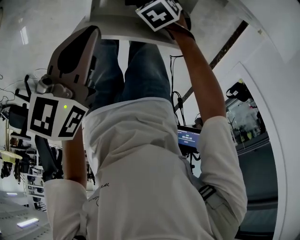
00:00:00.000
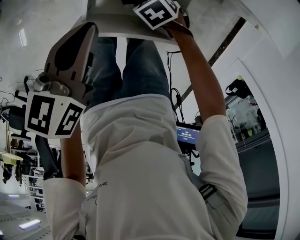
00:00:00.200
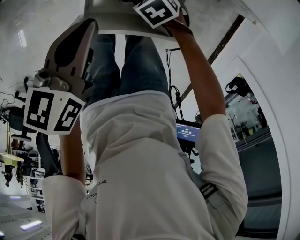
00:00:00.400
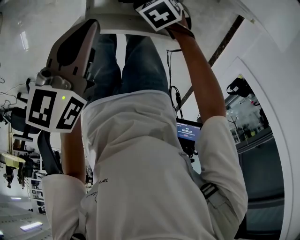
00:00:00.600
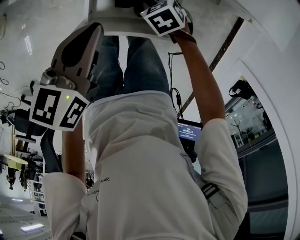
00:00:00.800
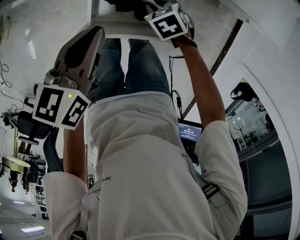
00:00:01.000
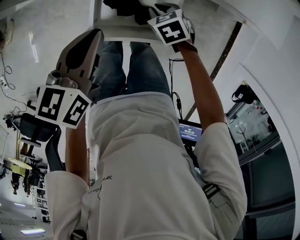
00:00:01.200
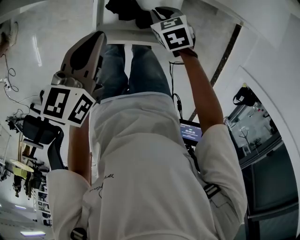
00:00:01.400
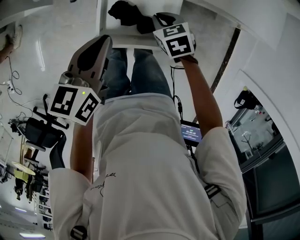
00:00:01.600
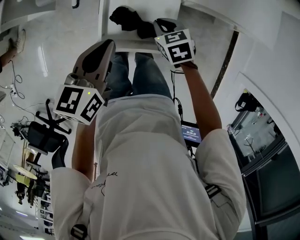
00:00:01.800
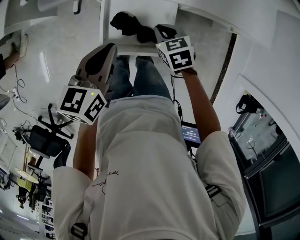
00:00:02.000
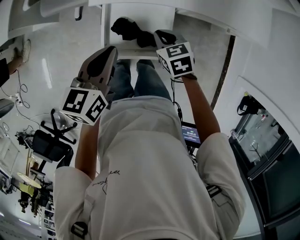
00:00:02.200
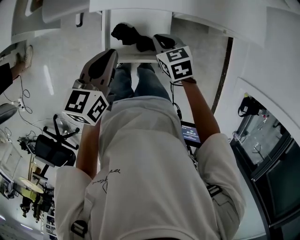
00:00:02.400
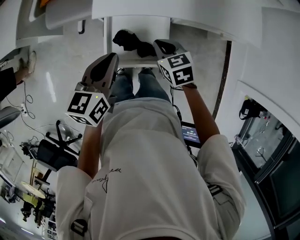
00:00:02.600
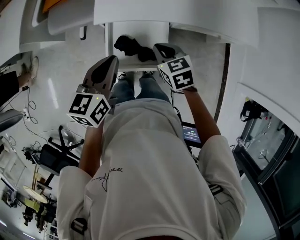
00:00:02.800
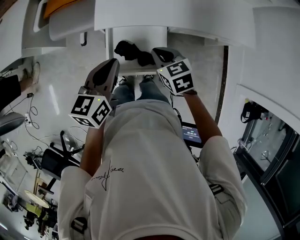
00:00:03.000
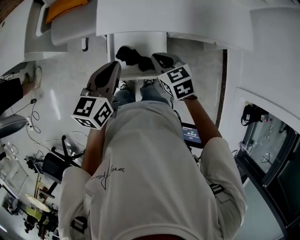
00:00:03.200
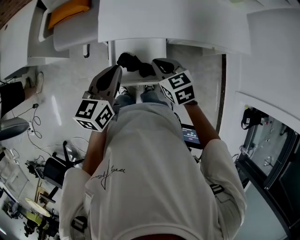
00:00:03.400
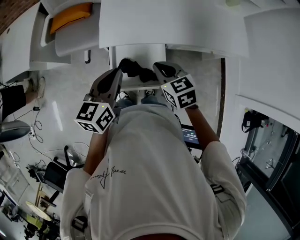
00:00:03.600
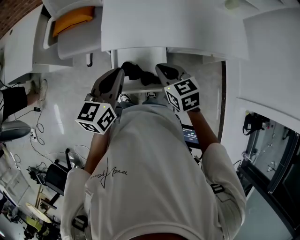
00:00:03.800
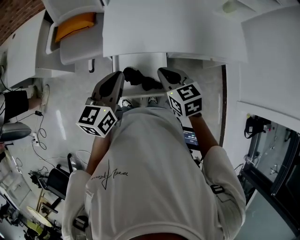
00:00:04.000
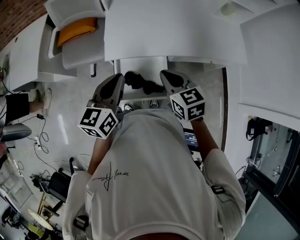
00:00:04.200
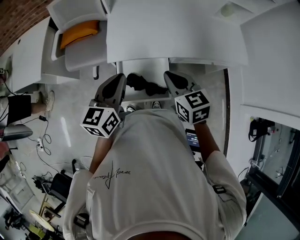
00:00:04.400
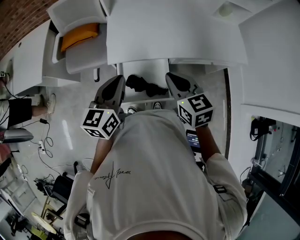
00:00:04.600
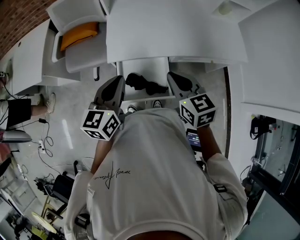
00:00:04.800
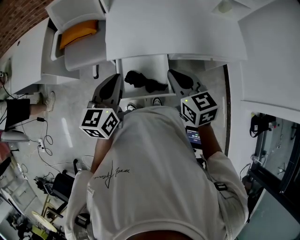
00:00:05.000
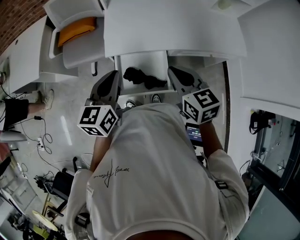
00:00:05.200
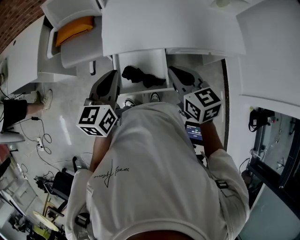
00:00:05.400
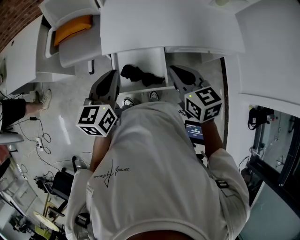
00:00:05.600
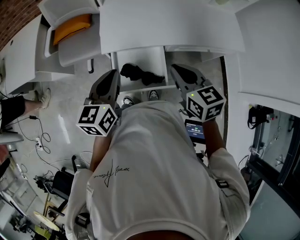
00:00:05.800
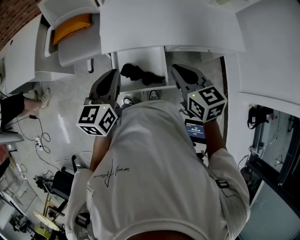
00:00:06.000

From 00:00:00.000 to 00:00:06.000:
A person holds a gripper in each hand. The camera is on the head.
From 00:00:00.000 to 00:00:01.600: The right gripper shifts about 15 cm upward, rotates some 30 degrees, and closes. Meanwhile the left gripper moves upward, about 5 cm.
From 00:00:01.600 to 00:00:03.000: The left gripper travels upward by some 10 cm; the right gripper shifts some 15 cm upward.
From 00:00:03.000 to 00:00:04.400: The left gripper heads upward, covering some 5 cm; the right gripper travels upward by about 10 cm.
From 00:00:04.400 to 00:00:06.000: The grippers stay close to where they were, moving slightly.

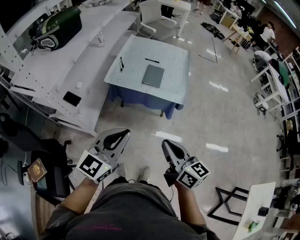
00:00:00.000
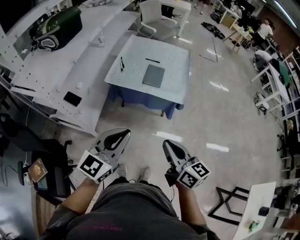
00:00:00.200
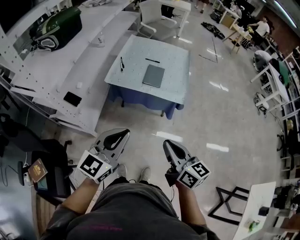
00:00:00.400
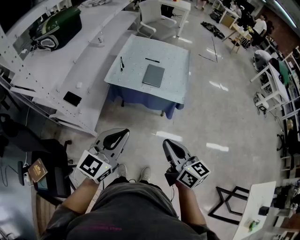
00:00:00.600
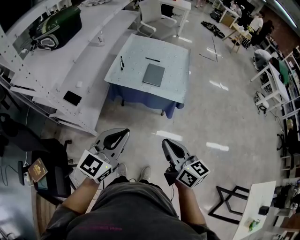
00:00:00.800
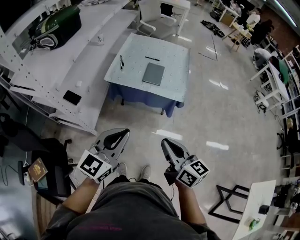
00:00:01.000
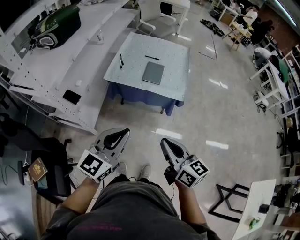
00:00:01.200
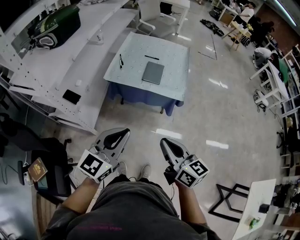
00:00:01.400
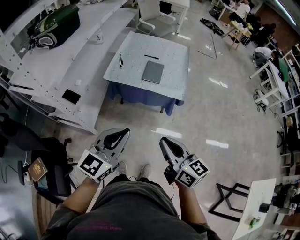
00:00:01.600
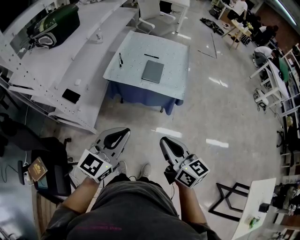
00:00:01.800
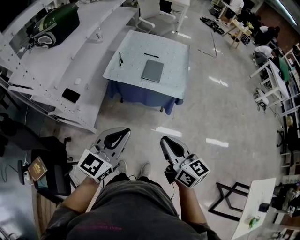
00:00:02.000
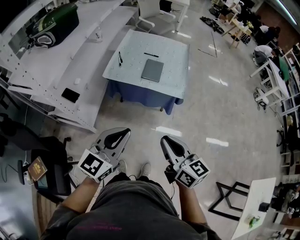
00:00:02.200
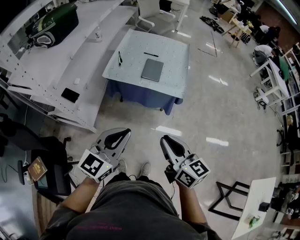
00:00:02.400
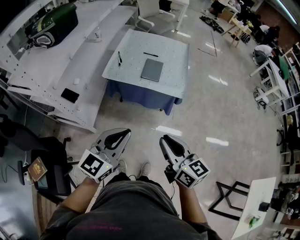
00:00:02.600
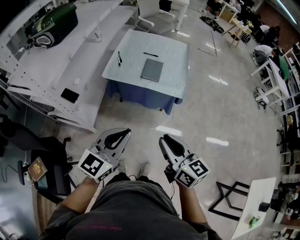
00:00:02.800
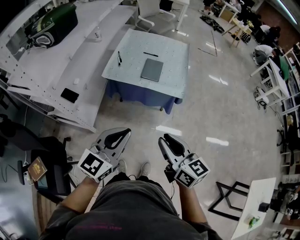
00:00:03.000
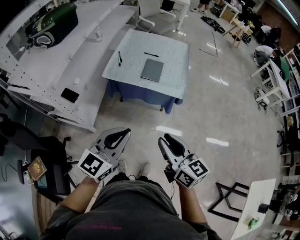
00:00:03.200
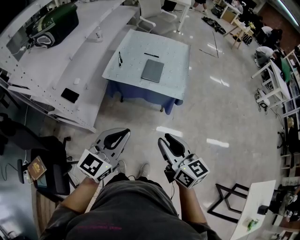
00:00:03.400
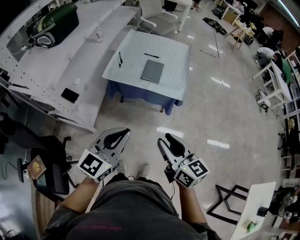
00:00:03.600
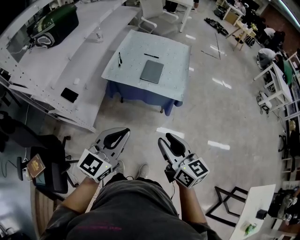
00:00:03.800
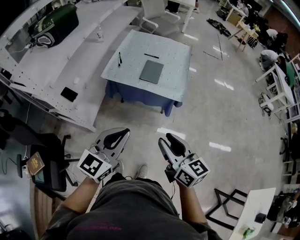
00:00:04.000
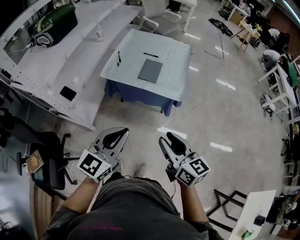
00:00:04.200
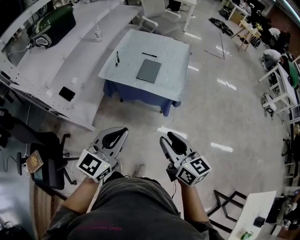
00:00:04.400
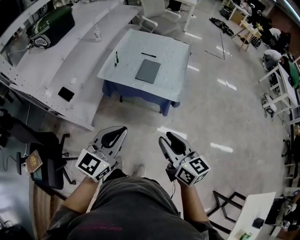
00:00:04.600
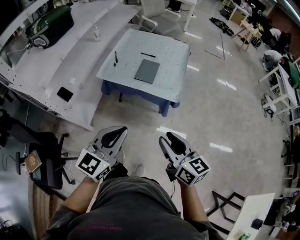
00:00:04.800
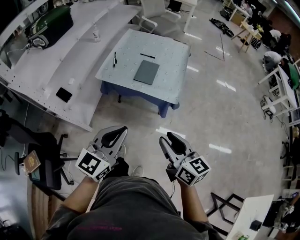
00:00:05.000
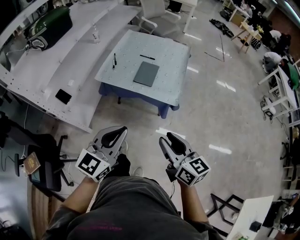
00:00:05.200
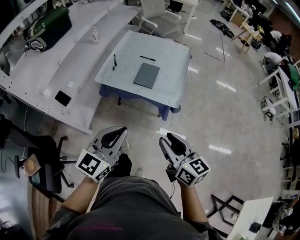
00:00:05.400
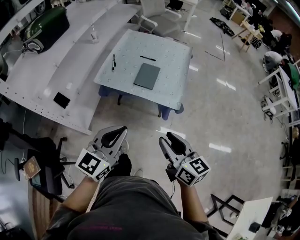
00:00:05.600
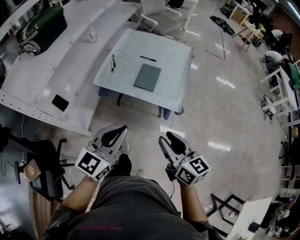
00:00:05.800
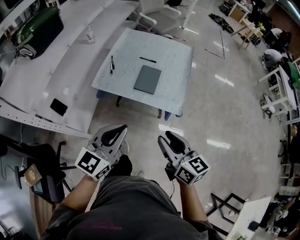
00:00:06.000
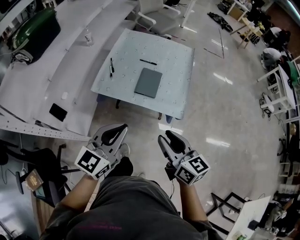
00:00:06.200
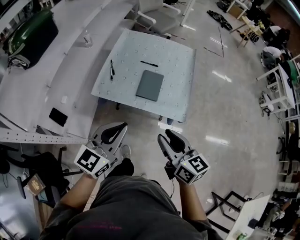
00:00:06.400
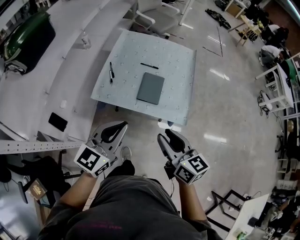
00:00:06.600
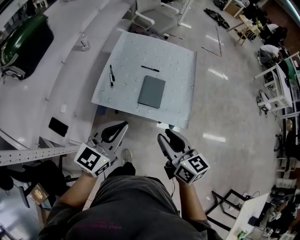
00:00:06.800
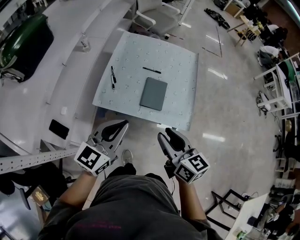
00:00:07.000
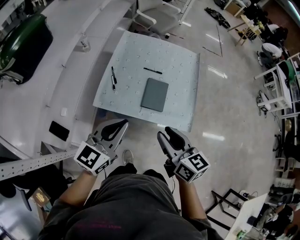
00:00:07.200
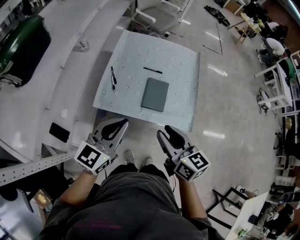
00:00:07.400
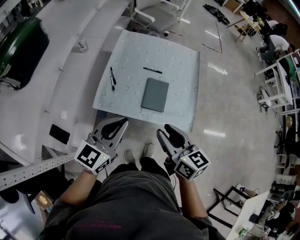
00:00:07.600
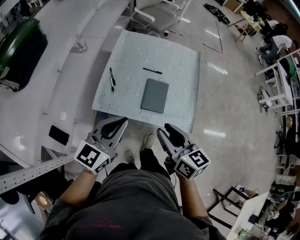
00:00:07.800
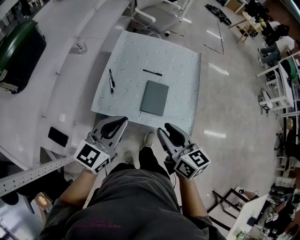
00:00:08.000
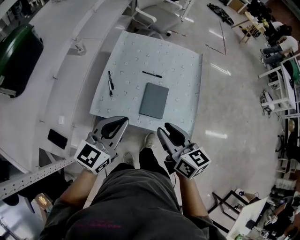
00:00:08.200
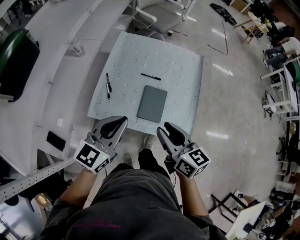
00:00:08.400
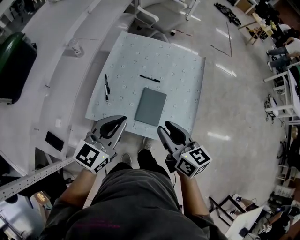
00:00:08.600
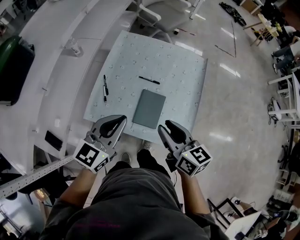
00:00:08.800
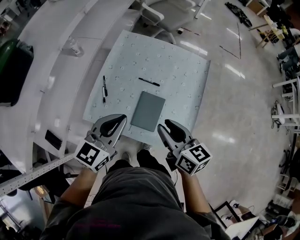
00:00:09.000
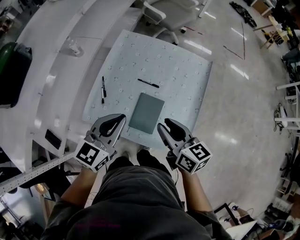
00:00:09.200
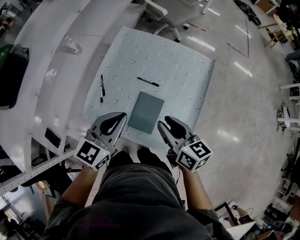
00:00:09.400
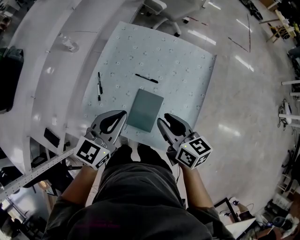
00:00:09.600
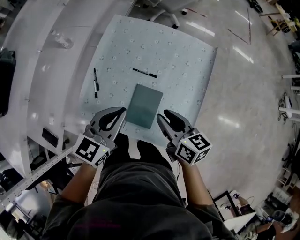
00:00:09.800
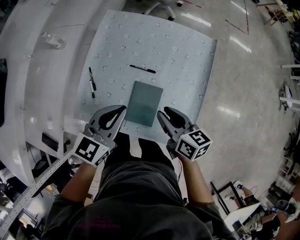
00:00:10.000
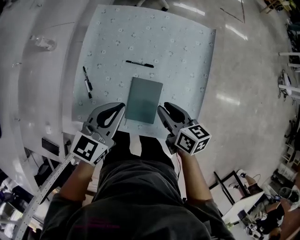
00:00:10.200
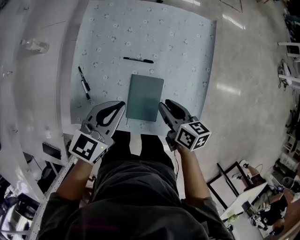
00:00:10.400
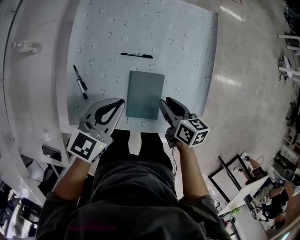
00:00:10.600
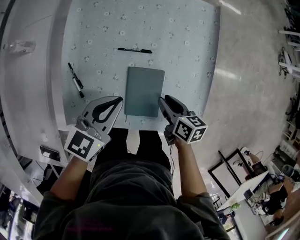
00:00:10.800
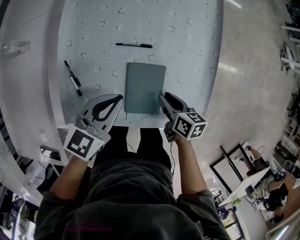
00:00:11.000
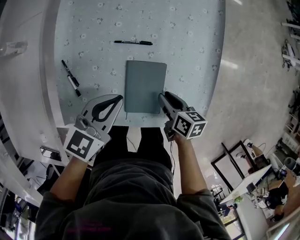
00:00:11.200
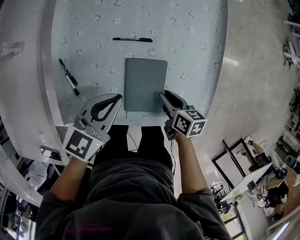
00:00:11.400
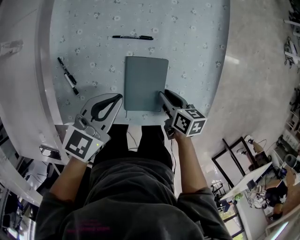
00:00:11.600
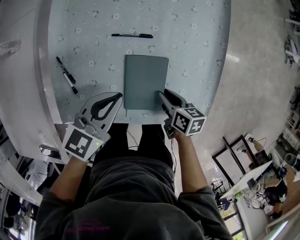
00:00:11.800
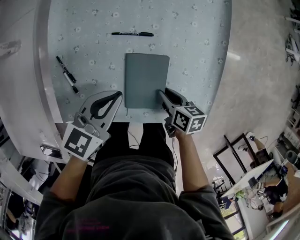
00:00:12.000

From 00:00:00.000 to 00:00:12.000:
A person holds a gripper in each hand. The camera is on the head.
From 00:00:00.000 to 00:00:01.600: Both grippers stay about where they are.
From 00:00:01.600 to 00:00:03.000: The grippers move only a little.
From 00:00:03.000 to 00:00:04.400: The two grippers go some 10 cm to the right.
From 00:00:04.400 to 00:00:06.000: Both grippers travel together forward, about 15 cm.
From 00:00:06.000 to 00:00:07.600: Both grippers travel together forward and to the left, some 25 cm.
From 00:00:07.600 to 00:00:09.000: Both grippers move forward and to the right, some 20 cm.
From 00:00:09.000 to 00:00:10.400: The left gripper is displaced downward and forward by approximately 15 cm. The right gripper heads downward, covering approximately 20 cm, and changes its angle by about 30 degrees.
From 00:00:10.400 to 00:00:12.000: The left gripper heads downward, covering some 10 cm. Meanwhile the right gripper travels downward by roughly 15 cm.

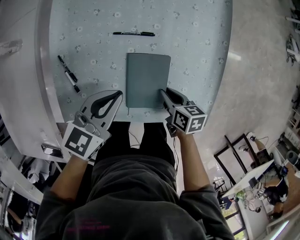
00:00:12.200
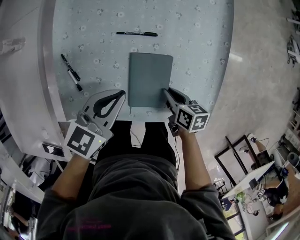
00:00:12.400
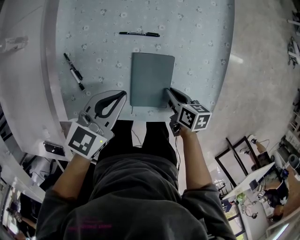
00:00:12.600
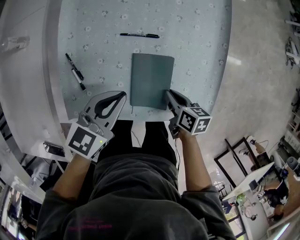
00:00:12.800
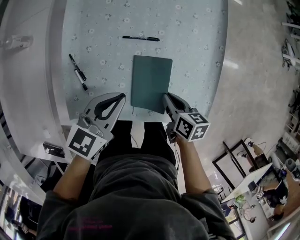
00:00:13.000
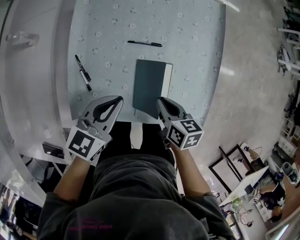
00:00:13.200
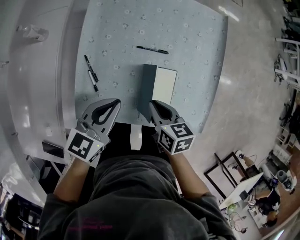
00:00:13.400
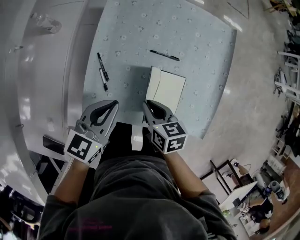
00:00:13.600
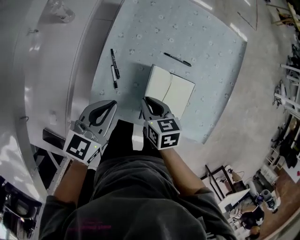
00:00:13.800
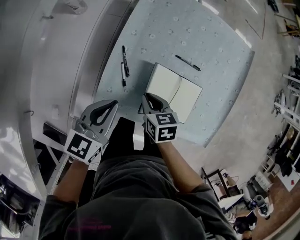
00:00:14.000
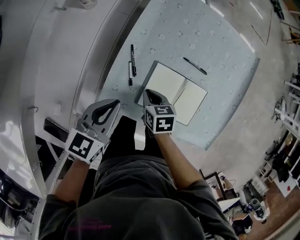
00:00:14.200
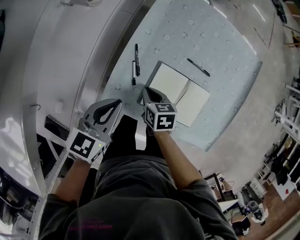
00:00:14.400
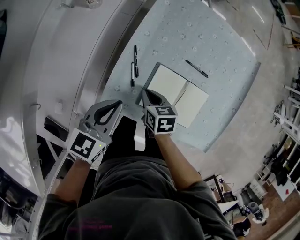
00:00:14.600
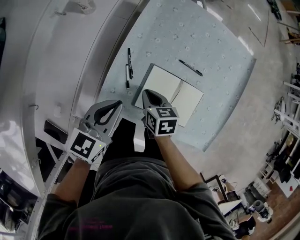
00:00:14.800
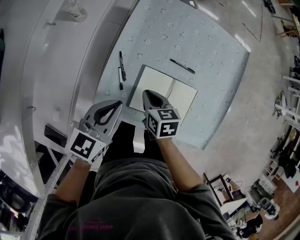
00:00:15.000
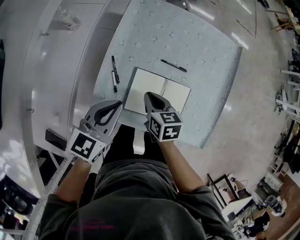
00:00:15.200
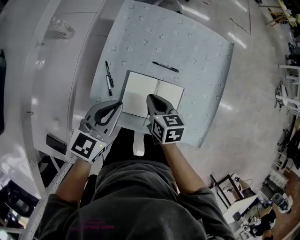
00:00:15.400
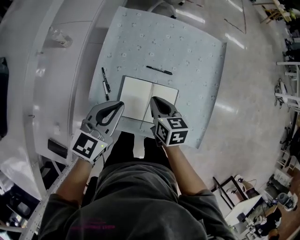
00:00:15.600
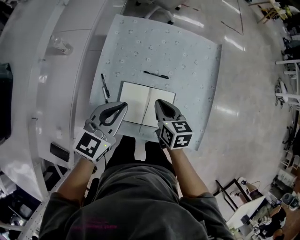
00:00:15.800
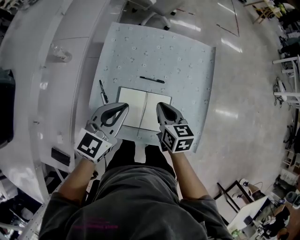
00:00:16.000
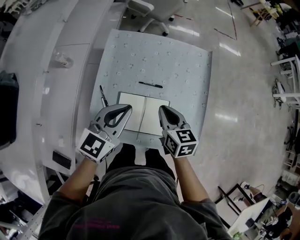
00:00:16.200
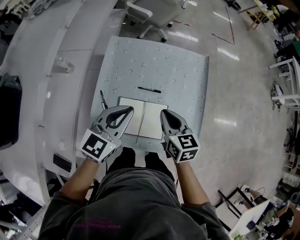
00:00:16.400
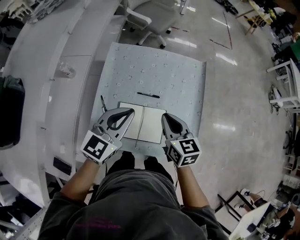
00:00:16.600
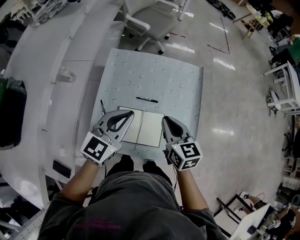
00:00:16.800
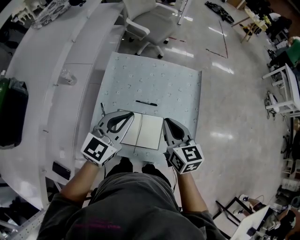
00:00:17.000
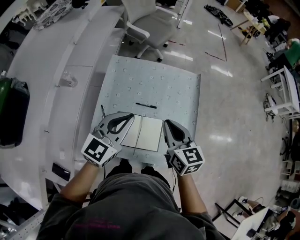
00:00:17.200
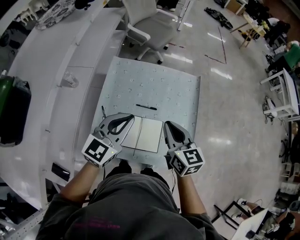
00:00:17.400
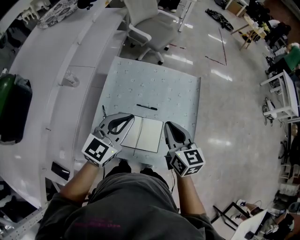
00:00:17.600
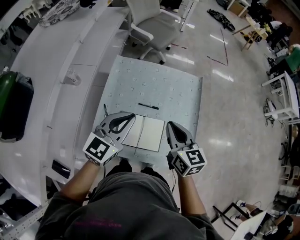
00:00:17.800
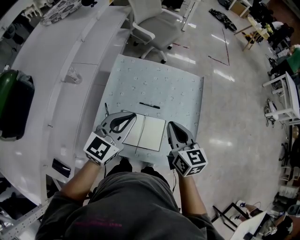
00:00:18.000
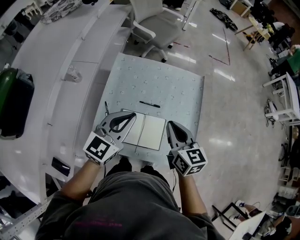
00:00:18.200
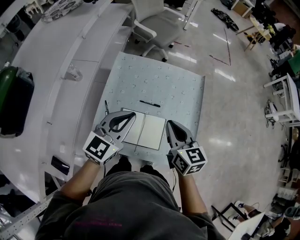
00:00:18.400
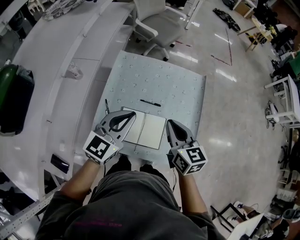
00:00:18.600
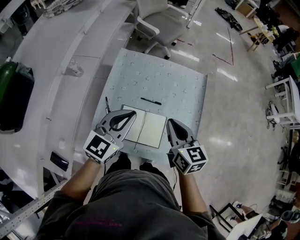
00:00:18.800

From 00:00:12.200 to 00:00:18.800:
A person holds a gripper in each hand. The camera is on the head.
From 00:00:12.200 to 00:00:13.800: The left gripper shifts roughly 20 cm to the left. Meanwhile the right gripper travels to the left and upward by approximately 25 cm, and swivels approximately 20 degrees.
From 00:00:13.800 to 00:00:15.400: Both grippers travel together to the right, roughly 5 cm.
From 00:00:15.400 to 00:00:17.200: The grippers both shift upward and to the right by roughly 20 cm. The right gripper changes its angle by some 30 degrees.
From 00:00:17.200 to 00:00:18.800: The grippers move only a little.
